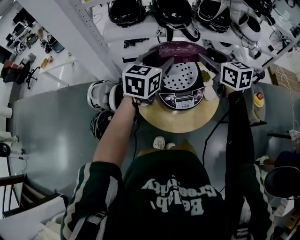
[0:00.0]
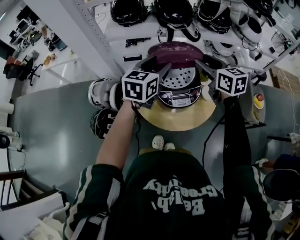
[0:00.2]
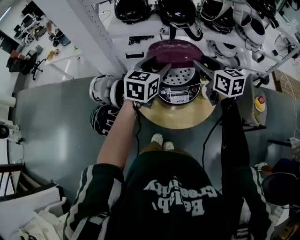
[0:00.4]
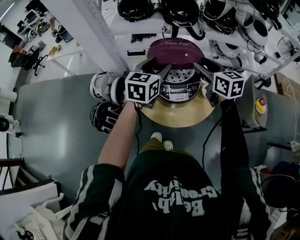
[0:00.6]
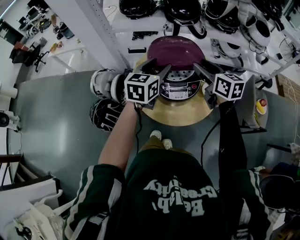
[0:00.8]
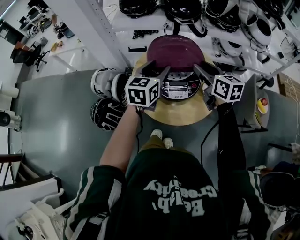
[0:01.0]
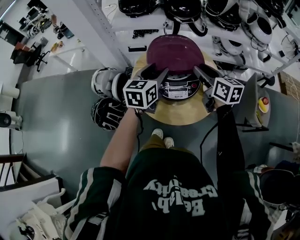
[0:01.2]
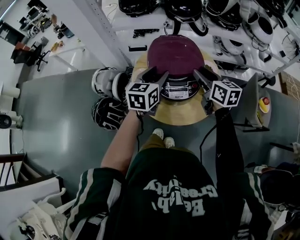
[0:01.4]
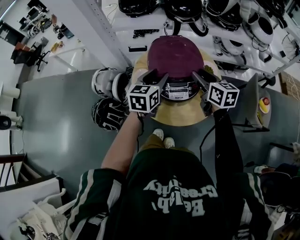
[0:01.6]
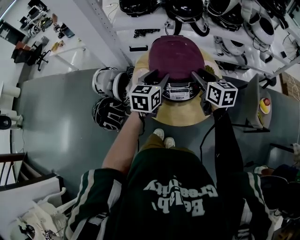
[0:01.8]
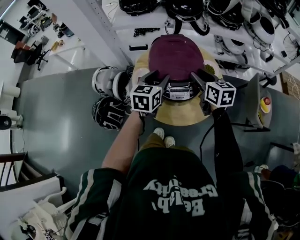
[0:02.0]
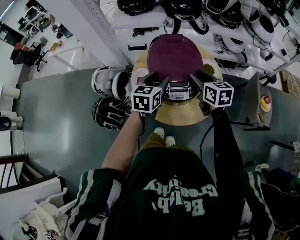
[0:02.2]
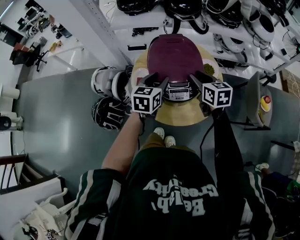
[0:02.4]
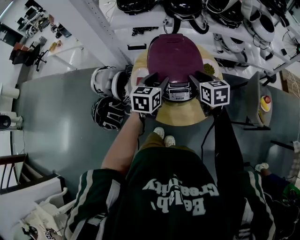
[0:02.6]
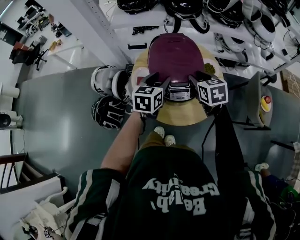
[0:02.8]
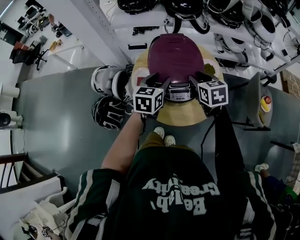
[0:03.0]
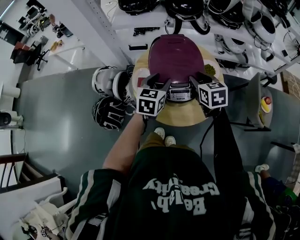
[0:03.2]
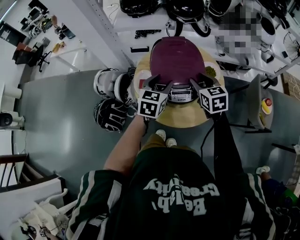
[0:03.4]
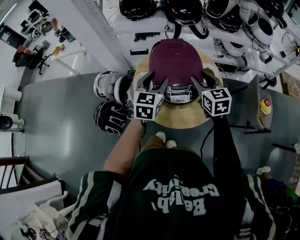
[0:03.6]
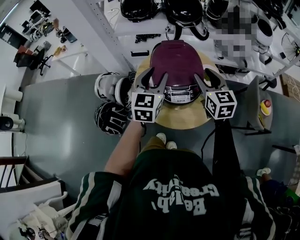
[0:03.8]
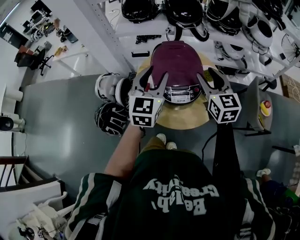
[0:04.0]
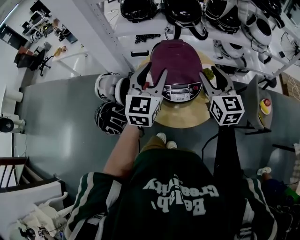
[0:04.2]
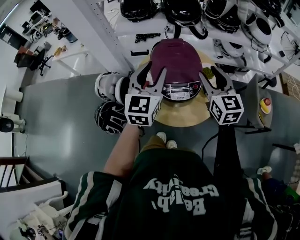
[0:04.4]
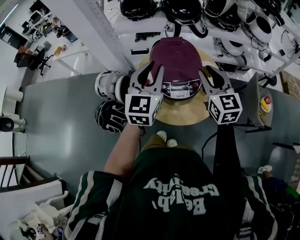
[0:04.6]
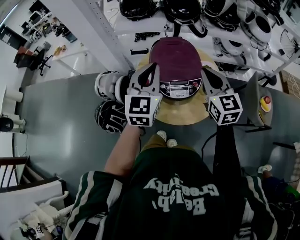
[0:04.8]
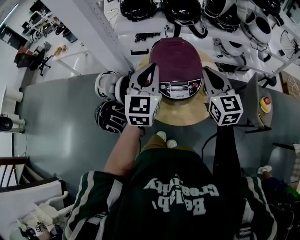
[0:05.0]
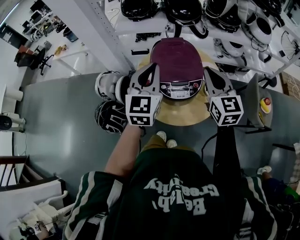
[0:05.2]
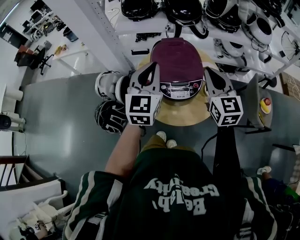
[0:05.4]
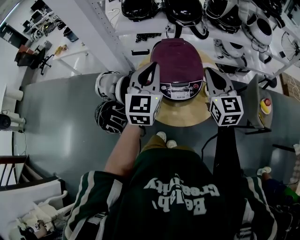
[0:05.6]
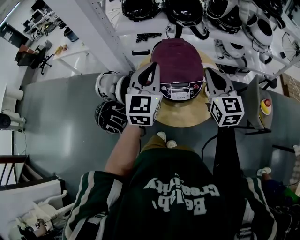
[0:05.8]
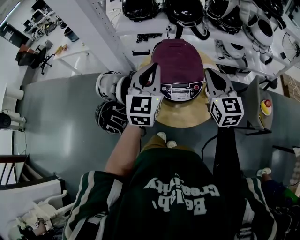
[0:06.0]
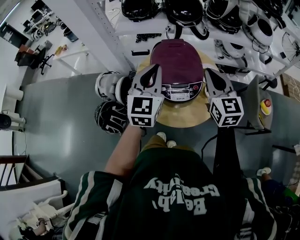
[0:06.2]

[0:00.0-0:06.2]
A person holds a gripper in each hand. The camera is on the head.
0:00.0 to 0:01.6: Both grippers move downward and backward, about 15 cm.
0:01.6 to 0:03.2: The right gripper rotates roughly 20 degrees.
0:03.2 to 0:04.6: Both grippers move upward, approximately 15 cm. The left gripper changes its angle by some 30 degrees, while the right gripper changes its angle by roughly 30 degrees.
0:04.6 to 0:06.2: The right gripper closes up.

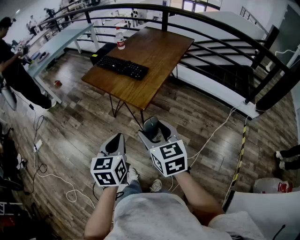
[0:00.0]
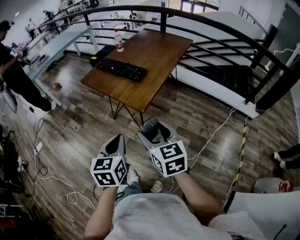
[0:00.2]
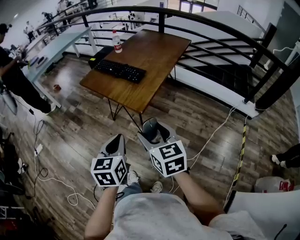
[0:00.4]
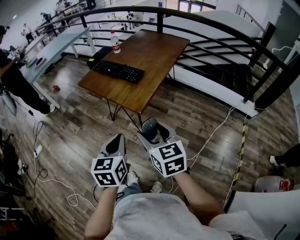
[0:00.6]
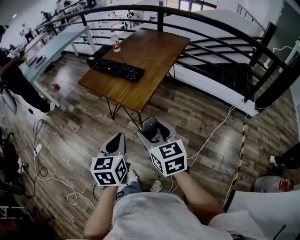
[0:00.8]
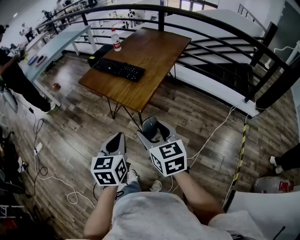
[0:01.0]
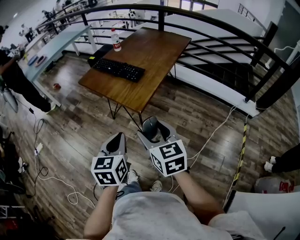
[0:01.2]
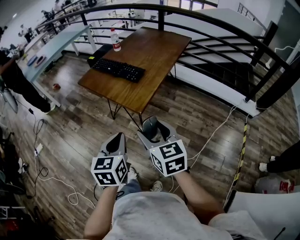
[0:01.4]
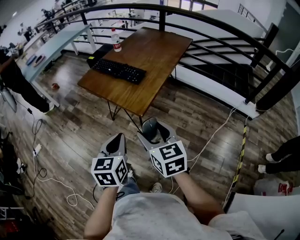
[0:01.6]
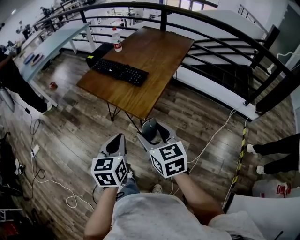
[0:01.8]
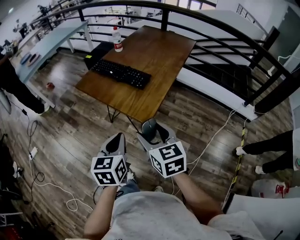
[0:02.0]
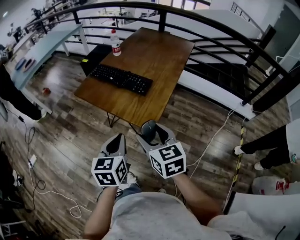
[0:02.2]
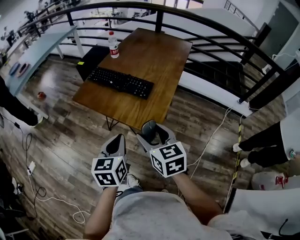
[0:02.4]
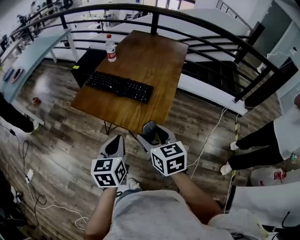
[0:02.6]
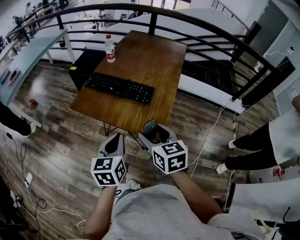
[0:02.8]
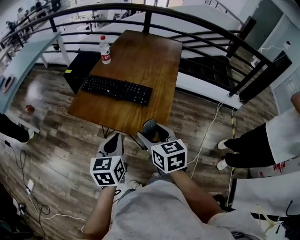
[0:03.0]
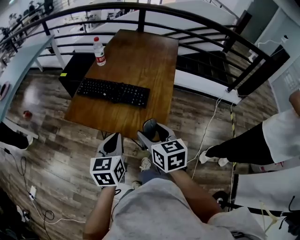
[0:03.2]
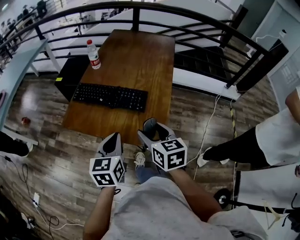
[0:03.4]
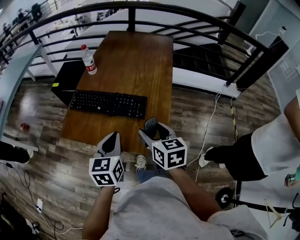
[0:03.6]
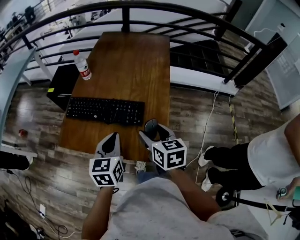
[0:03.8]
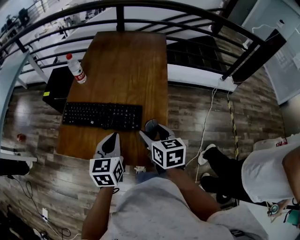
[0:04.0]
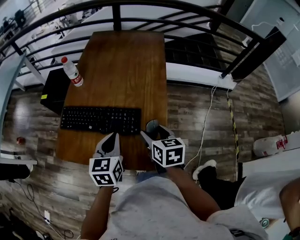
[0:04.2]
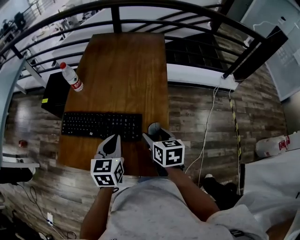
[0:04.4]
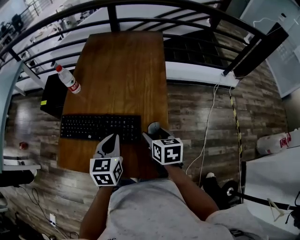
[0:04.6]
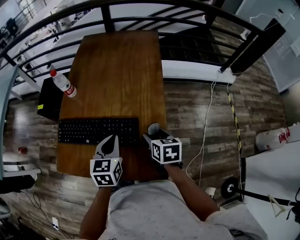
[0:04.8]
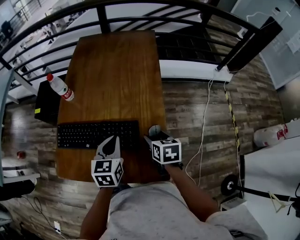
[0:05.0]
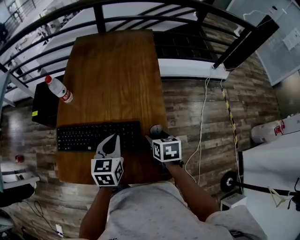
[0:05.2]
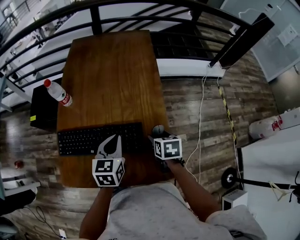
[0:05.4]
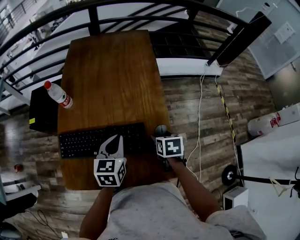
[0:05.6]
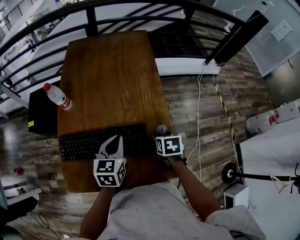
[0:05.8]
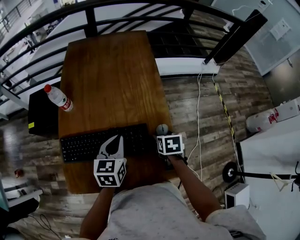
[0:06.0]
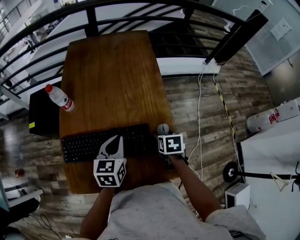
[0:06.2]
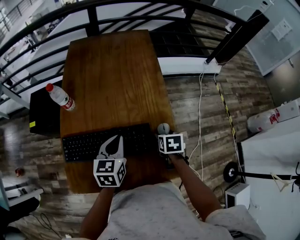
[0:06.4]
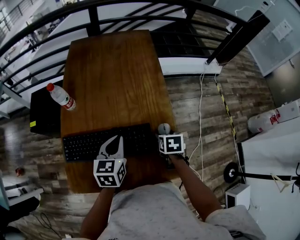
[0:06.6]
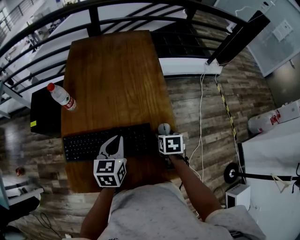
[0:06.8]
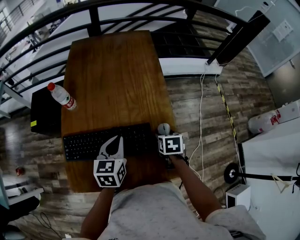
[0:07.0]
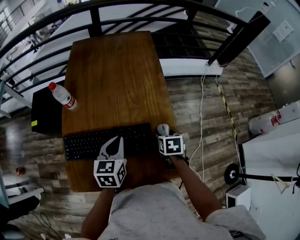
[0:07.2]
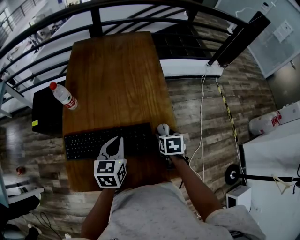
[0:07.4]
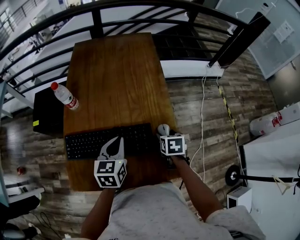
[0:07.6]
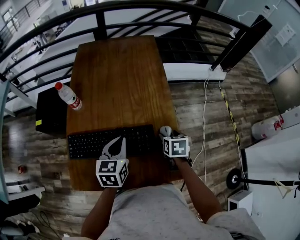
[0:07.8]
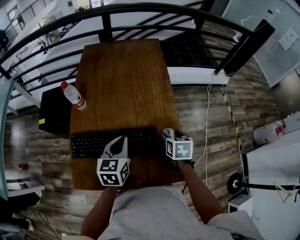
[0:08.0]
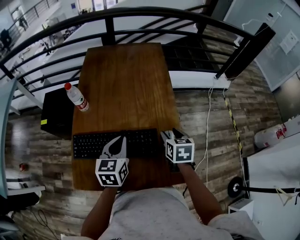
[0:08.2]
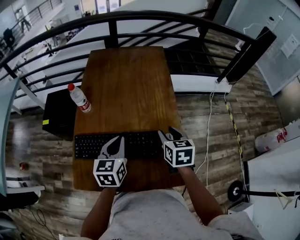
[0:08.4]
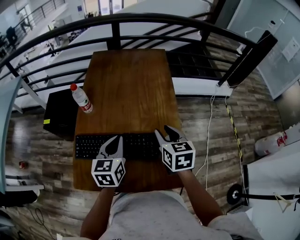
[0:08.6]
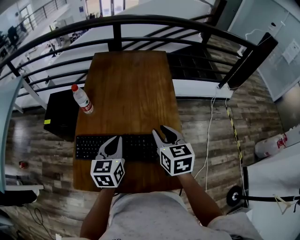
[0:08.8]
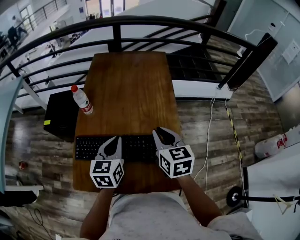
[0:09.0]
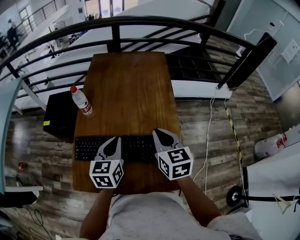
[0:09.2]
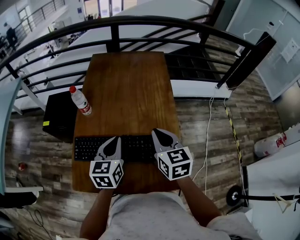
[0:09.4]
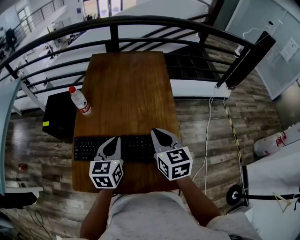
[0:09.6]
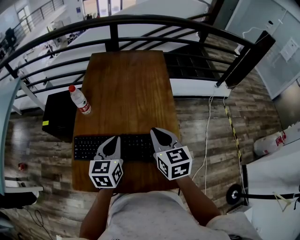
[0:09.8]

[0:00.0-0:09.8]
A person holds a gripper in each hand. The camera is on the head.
0:00.0 to 0:01.4: The grippers stay close to where they were, moving slightly.
0:01.4 to 0:02.8: The grippers both shift forward and to the left by roughly 25 cm.
0:02.8 to 0:04.2: The right gripper is displaced forward and downward by approximately 25 cm, and rotates roughly 30 degrees. Meanwhile the left gripper shifts some 25 cm forward.
0:04.2 to 0:05.6: The left gripper travels forward by about 10 cm; the right gripper is displaced downward and forward by roughly 10 cm, and changes its angle by some 30 degrees.
0:05.6 to 0:07.0: The grippers move only a little.
0:07.0 to 0:08.4: The right gripper moves upward and to the left, some 15 cm, rotates about 30 degrees, and closes. Meanwhile the left gripper changes place by roughly 5 cm.
0:08.4 to 0:09.8: The right gripper is displaced upward and to the left by some 10 cm, and closes its fingers.

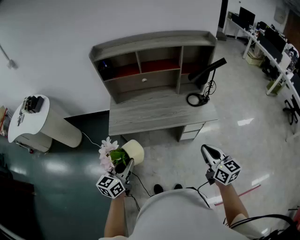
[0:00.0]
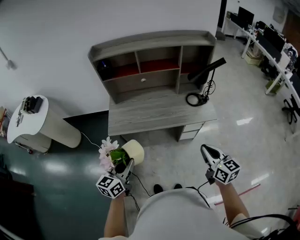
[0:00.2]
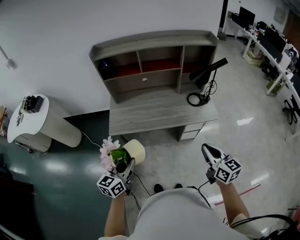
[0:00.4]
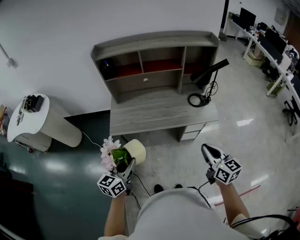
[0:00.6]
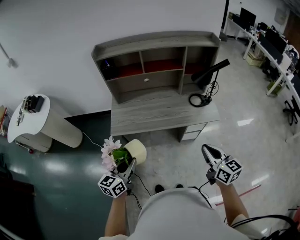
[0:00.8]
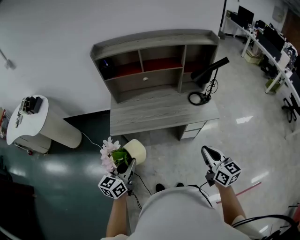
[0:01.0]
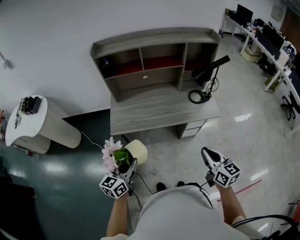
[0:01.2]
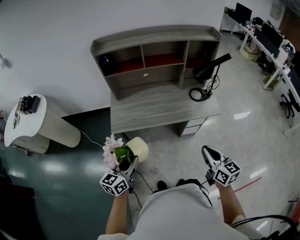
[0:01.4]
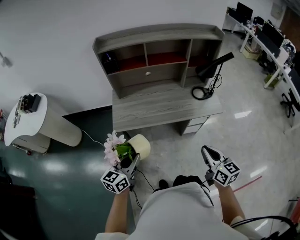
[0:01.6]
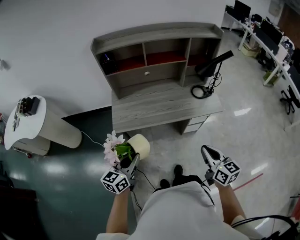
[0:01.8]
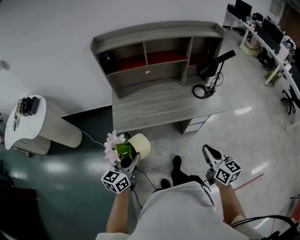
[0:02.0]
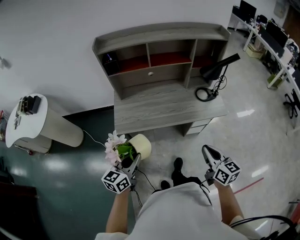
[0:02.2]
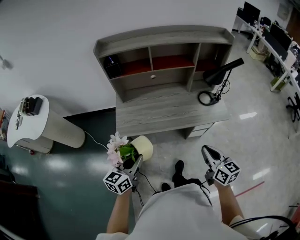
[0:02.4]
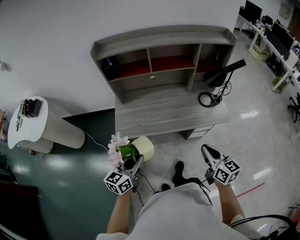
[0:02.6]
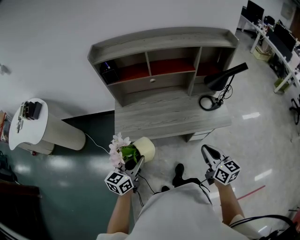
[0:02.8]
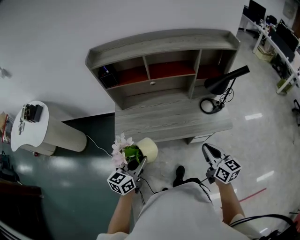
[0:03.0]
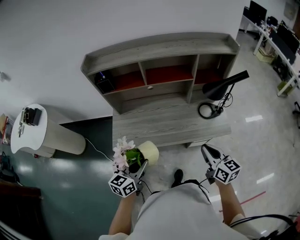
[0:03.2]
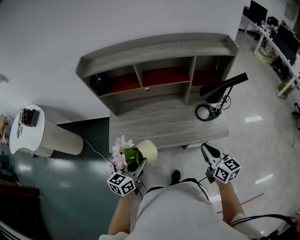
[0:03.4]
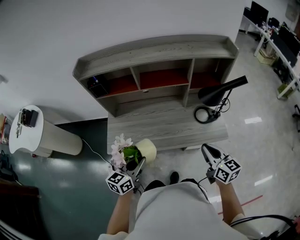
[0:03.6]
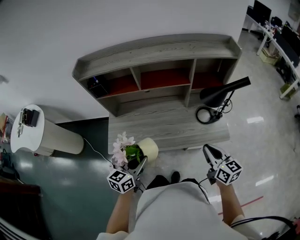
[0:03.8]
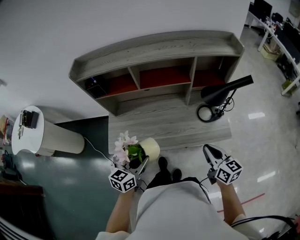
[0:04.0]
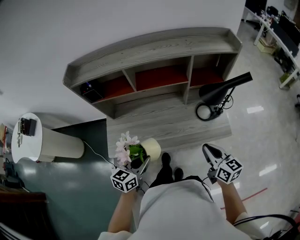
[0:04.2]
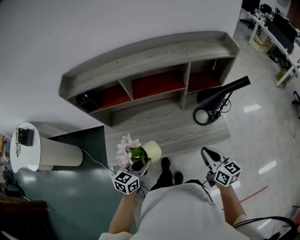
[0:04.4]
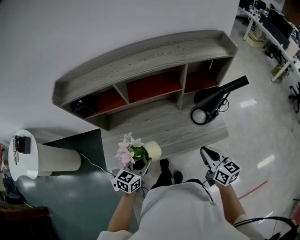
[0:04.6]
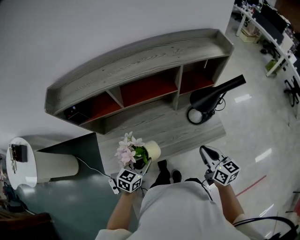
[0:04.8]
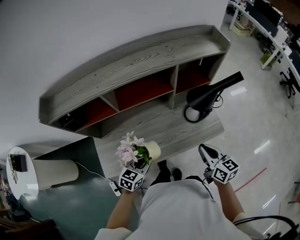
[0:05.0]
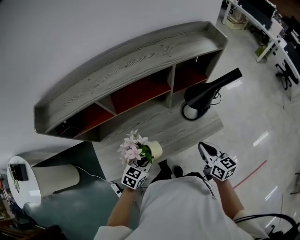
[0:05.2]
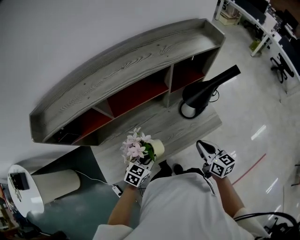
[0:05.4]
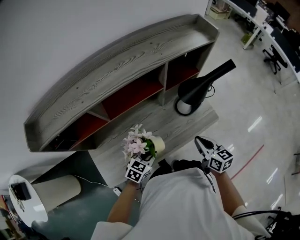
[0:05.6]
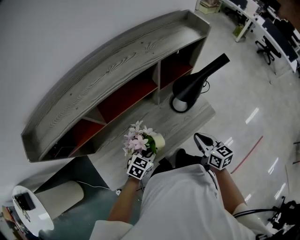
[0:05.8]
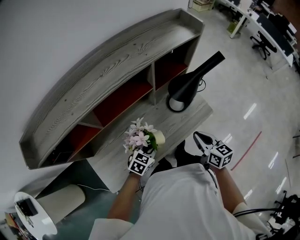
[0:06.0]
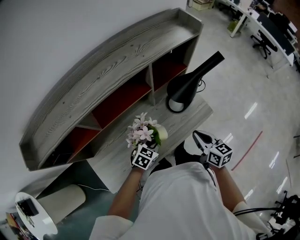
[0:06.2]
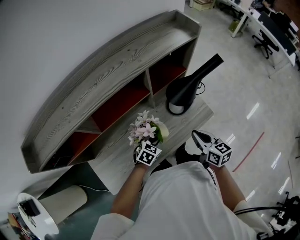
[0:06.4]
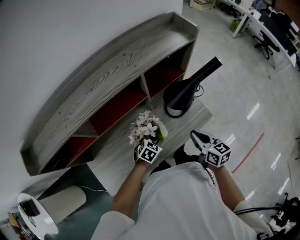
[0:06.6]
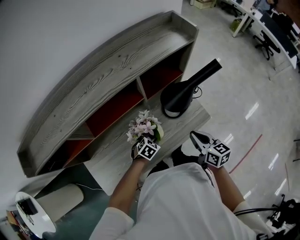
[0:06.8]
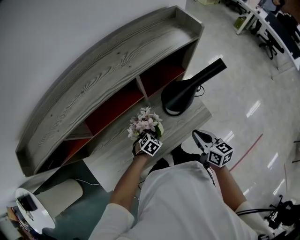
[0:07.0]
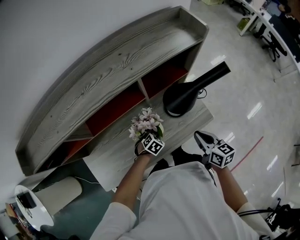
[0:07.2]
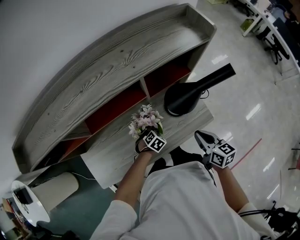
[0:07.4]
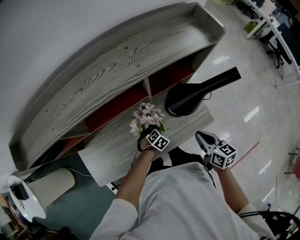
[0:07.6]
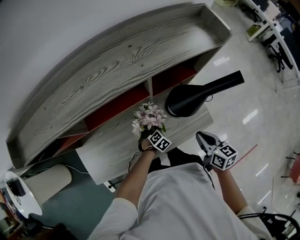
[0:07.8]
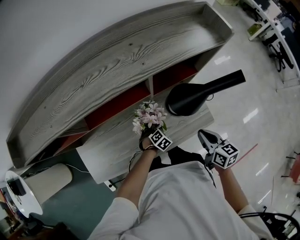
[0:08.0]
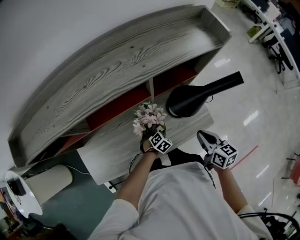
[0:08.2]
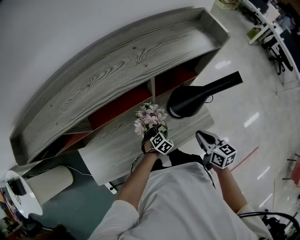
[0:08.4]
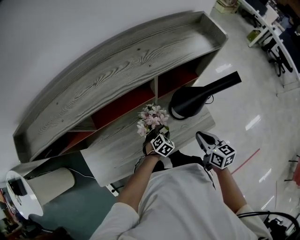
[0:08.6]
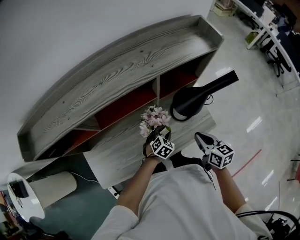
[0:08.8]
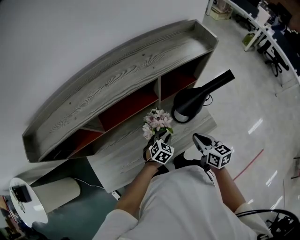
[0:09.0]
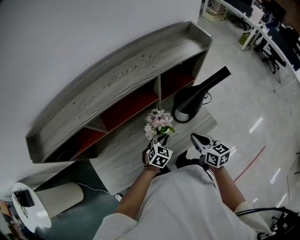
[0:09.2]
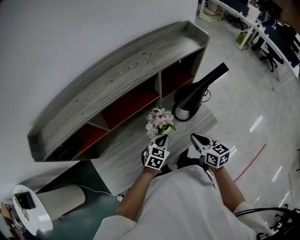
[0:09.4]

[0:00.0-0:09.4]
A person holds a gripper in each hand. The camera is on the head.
0:00.0 to 0:01.6: The grippers both shift to the left by approximately 5 cm.
0:01.6 to 0:03.2: The left gripper heads forward and to the right, covering about 20 cm, while the right gripper heads forward, covering about 20 cm.
0:03.2 to 0:04.8: The left gripper shifts roughly 20 cm forward and downward, and swivels some 20 degrees. The right gripper shifts approximately 10 cm forward.
0:04.8 to 0:06.2: The left gripper is displaced forward, downward and to the right by roughly 20 cm, and changes its angle by about 30 degrees. The right gripper shifts about 5 cm downward.
0:06.2 to 0:07.8: The left gripper moves downward and forward, approximately 20 cm, and swivels about 30 degrees. Meanwhile the right gripper travels forward by roughly 10 cm.
0:07.8 to 0:09.4: The right gripper travels to the left and backward by about 10 cm. The left gripper heads upward, covering about 20 cm, points its fingers approximately 30 degrees further upward, and opens, then closes once more.
